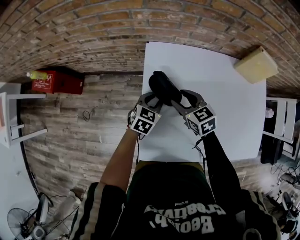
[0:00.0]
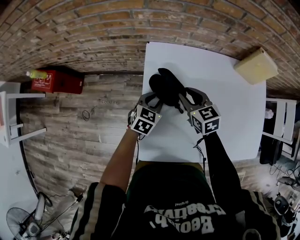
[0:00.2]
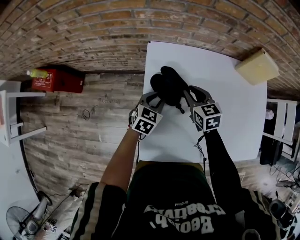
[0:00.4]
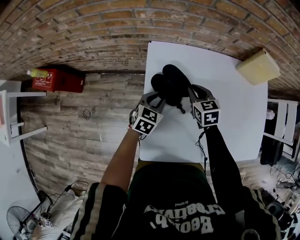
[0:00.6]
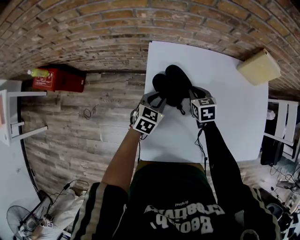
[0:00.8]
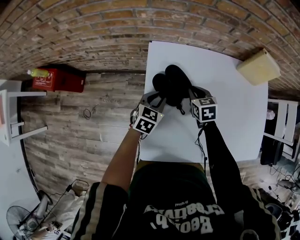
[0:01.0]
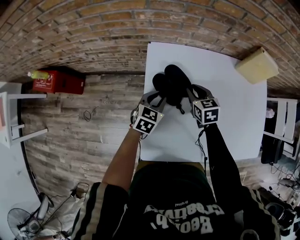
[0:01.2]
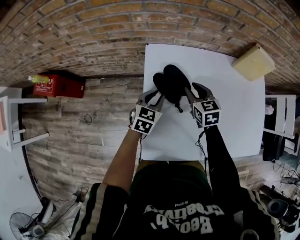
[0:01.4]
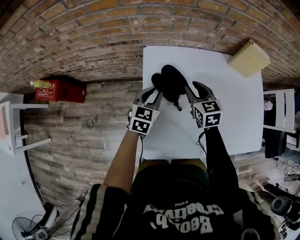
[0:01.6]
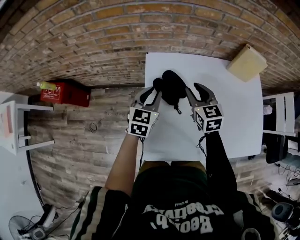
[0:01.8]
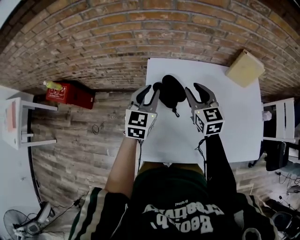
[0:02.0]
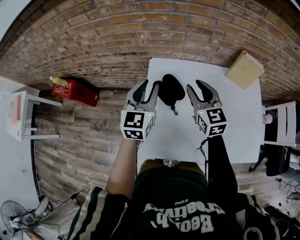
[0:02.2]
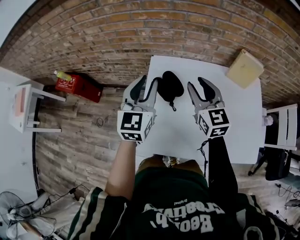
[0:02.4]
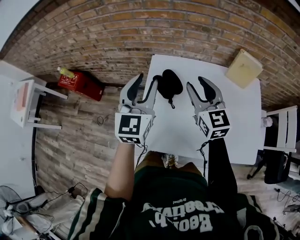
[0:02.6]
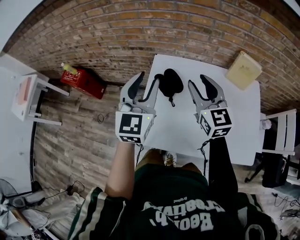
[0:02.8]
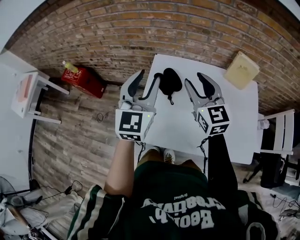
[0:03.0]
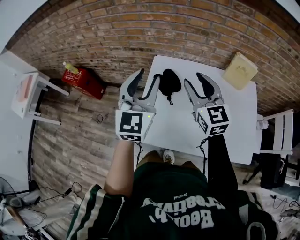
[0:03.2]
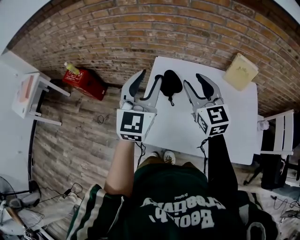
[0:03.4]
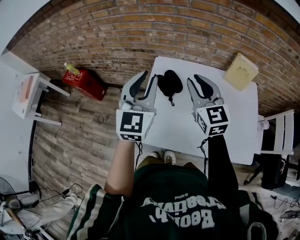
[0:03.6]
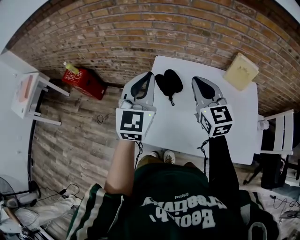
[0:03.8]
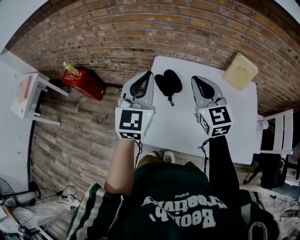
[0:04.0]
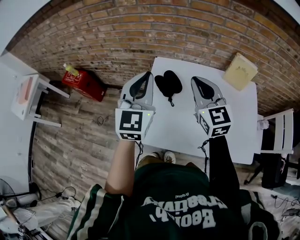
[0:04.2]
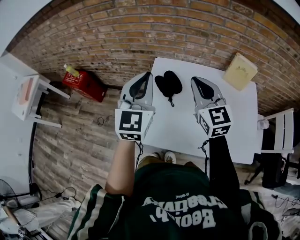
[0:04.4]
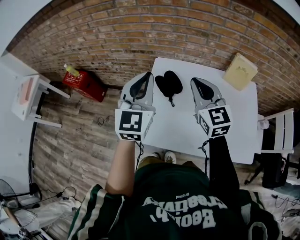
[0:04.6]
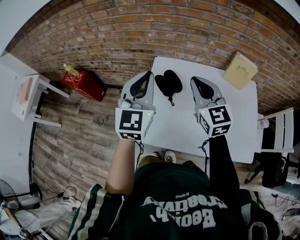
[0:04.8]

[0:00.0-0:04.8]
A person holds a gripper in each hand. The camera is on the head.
0:00.0 to 0:01.6: The right gripper heads to the right, covering some 5 cm, and changes its angle by approximately 20 degrees, while the left gripper travels upward by about 5 cm.
0:01.6 to 0:03.2: Both grippers move upward and backward, some 30 cm. The right gripper swivels approximately 30 degrees. Meanwhile the left gripper tilts its fingers some 30 degrees upward.
0:03.2 to 0:04.8: The right gripper closes up; the left gripper closes.

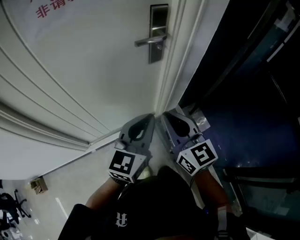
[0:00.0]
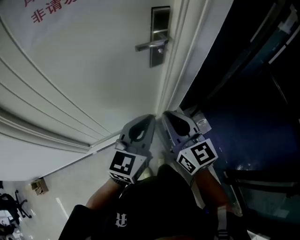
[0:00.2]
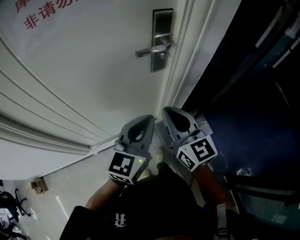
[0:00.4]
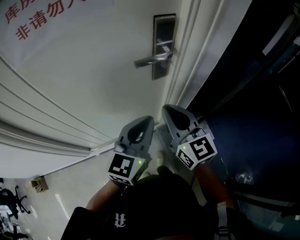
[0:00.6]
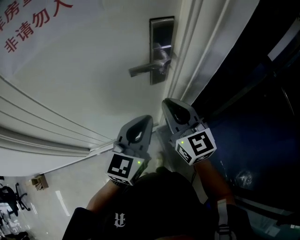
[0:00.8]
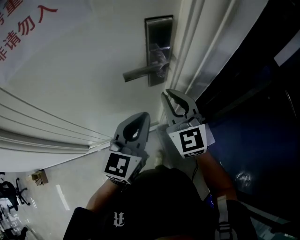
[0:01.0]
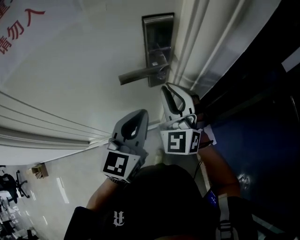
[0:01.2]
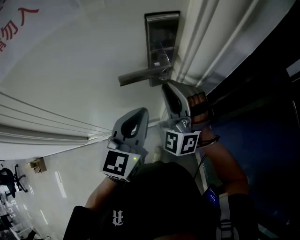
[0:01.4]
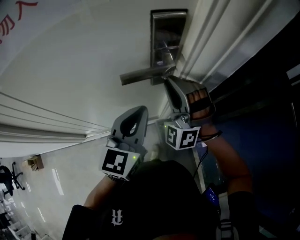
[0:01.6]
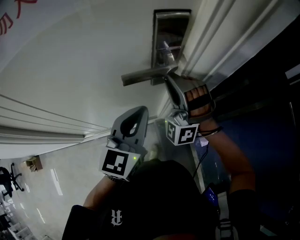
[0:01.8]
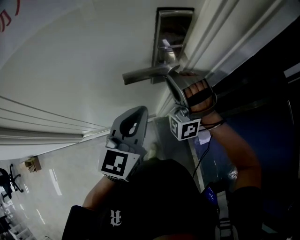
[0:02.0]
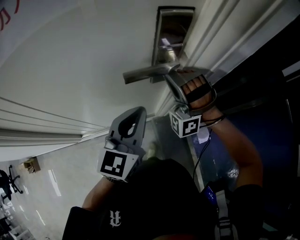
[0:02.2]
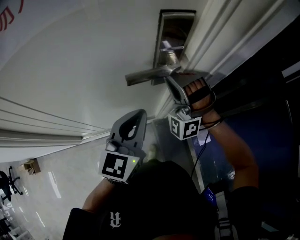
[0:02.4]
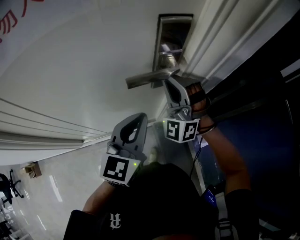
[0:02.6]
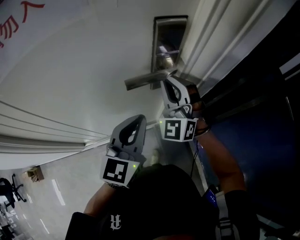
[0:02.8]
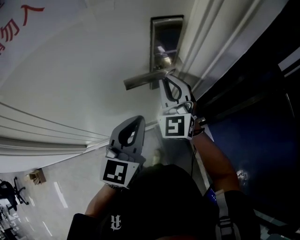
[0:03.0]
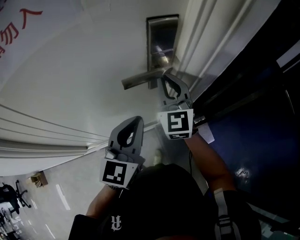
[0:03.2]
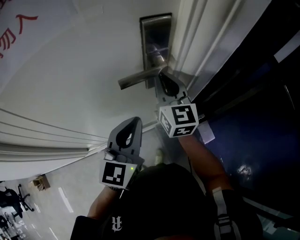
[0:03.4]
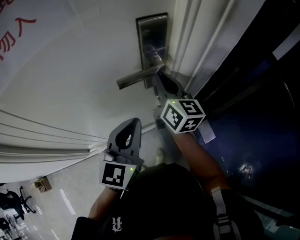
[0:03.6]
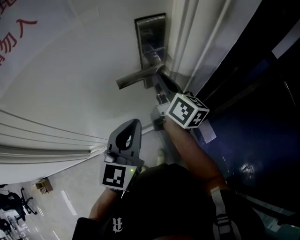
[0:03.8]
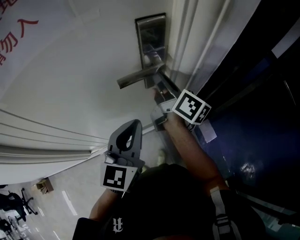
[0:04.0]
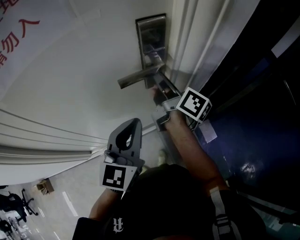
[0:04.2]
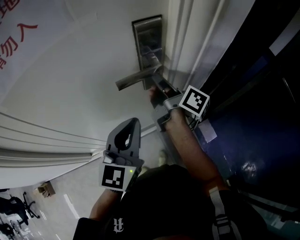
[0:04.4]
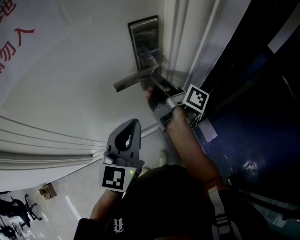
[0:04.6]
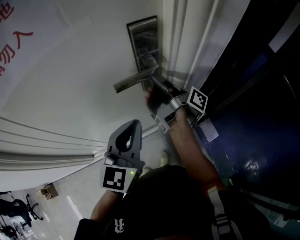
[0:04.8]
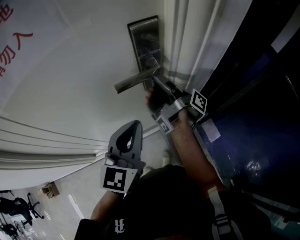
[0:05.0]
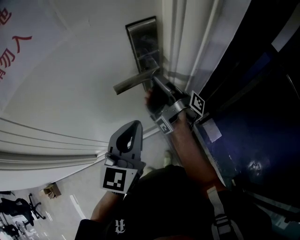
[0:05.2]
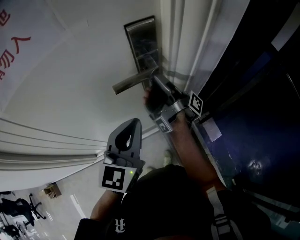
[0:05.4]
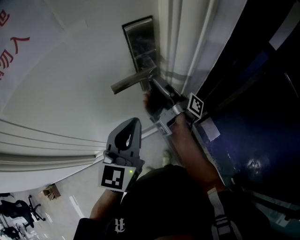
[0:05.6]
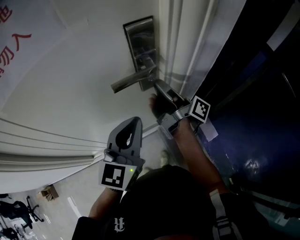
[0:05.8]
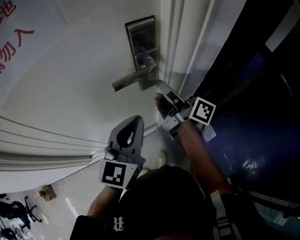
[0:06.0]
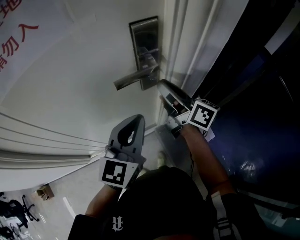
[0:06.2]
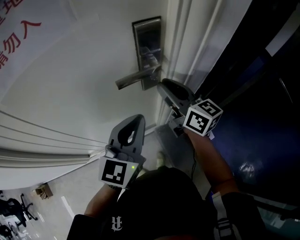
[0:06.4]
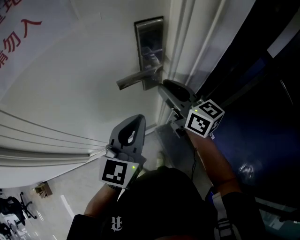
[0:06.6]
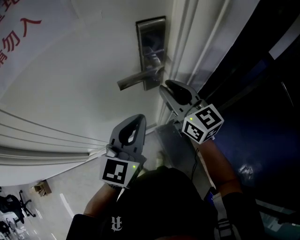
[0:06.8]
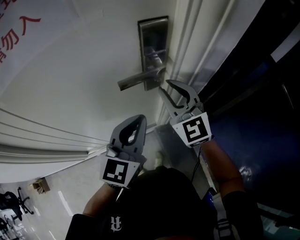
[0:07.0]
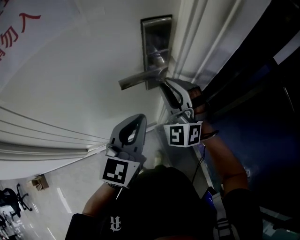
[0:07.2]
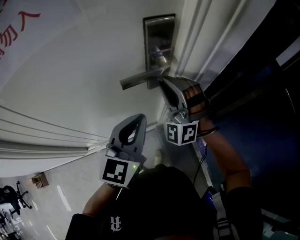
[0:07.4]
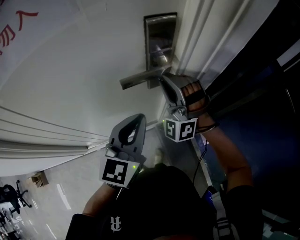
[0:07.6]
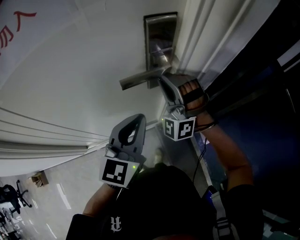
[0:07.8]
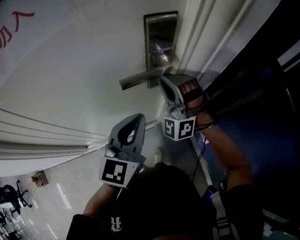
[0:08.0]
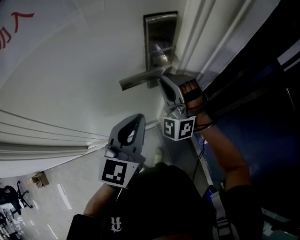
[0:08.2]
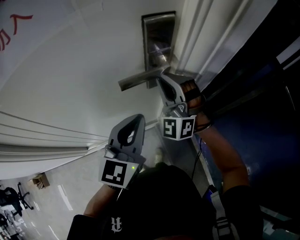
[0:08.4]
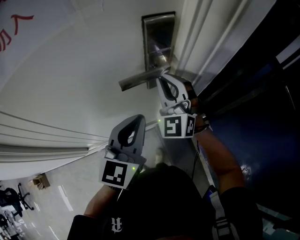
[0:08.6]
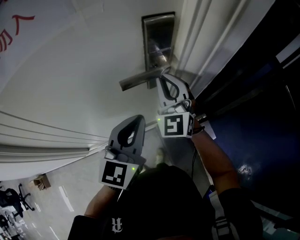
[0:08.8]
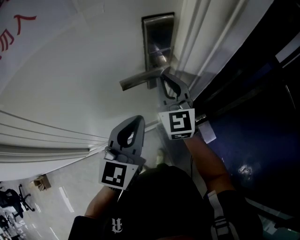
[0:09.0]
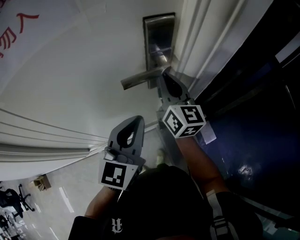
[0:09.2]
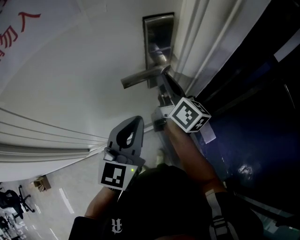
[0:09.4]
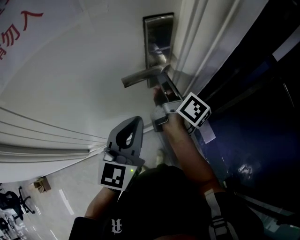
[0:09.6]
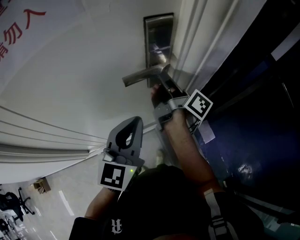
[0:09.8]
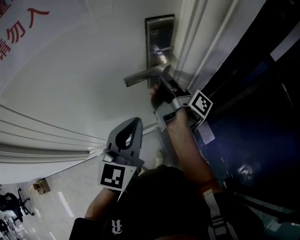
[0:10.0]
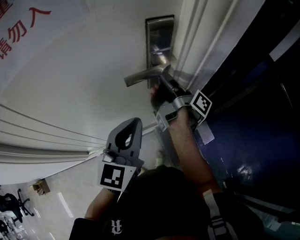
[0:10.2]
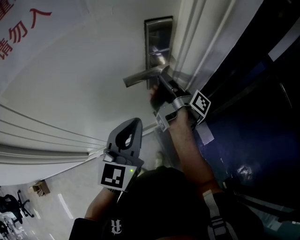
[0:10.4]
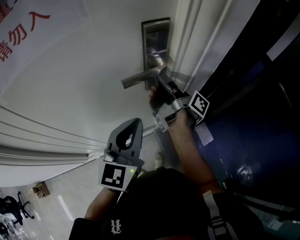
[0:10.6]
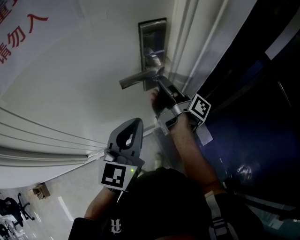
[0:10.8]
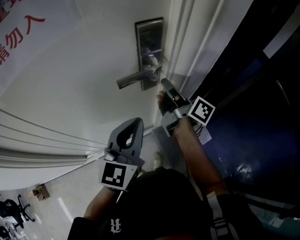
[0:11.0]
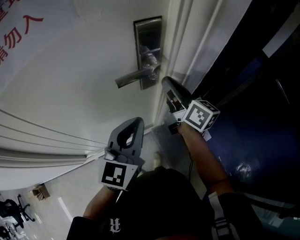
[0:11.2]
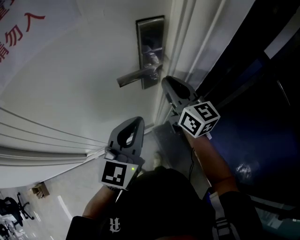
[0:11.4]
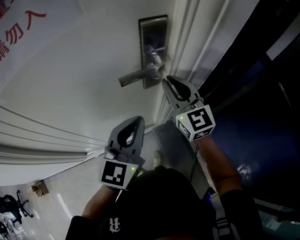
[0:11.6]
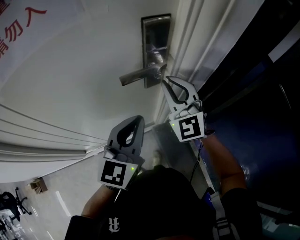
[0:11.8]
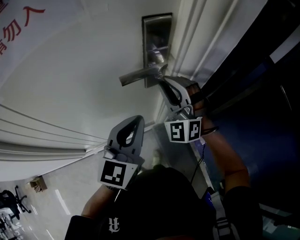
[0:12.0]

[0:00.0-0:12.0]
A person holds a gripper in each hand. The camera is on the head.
0:00.0 to 0:01.6: The two grippers go about 25 cm forward. The right gripper rolls counterclockwise, seen from behind, by some 80 degrees.
0:01.6 to 0:03.0: The right gripper rotates around the line of its fingers by about 40 degrees, clockwise from behind.
0:03.0 to 0:04.4: The right gripper twists approximately 110 degrees clockwise, seen from behind.
0:06.0 to 0:07.6: The right gripper rolls counterclockwise, seen from behind, by some 140 degrees.
0:07.6 to 0:09.0: The right gripper rolls clockwise, seen from behind, by approximately 70 degrees.
0:09.0 to 0:10.4: The right gripper twists some 110 degrees clockwise, seen from behind.
0:10.4 to 0:12.0: The right gripper changes place by approximately 5 cm, and rotates around the line of its fingers by some 160 degrees, counterclockwise from behind.

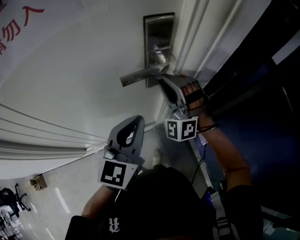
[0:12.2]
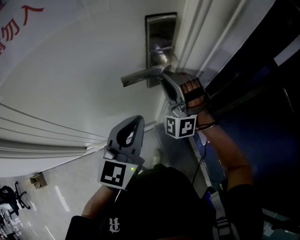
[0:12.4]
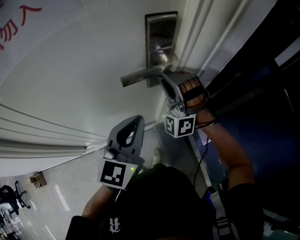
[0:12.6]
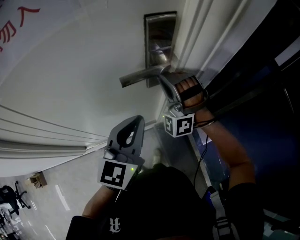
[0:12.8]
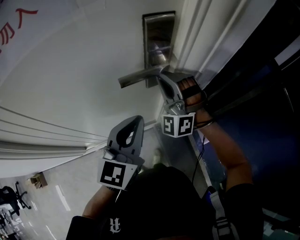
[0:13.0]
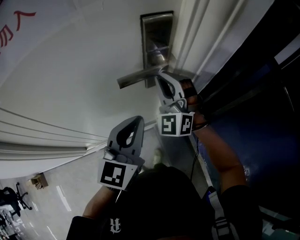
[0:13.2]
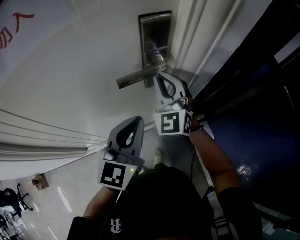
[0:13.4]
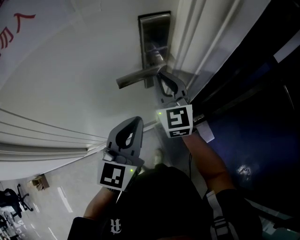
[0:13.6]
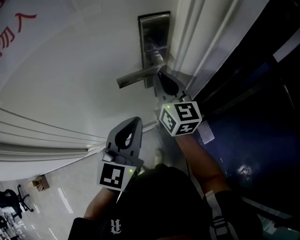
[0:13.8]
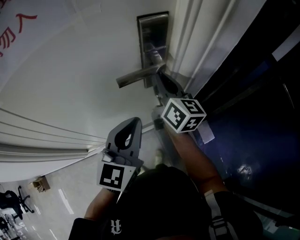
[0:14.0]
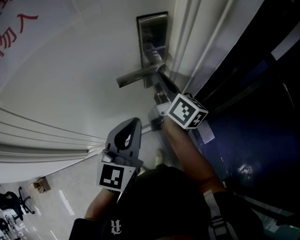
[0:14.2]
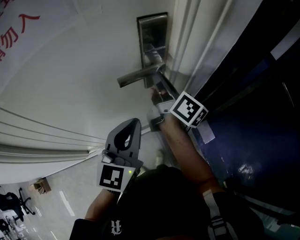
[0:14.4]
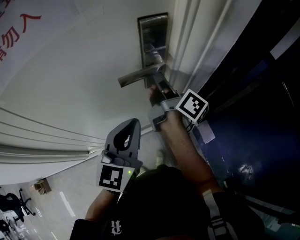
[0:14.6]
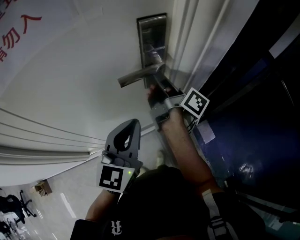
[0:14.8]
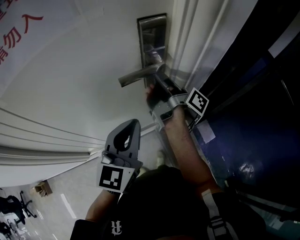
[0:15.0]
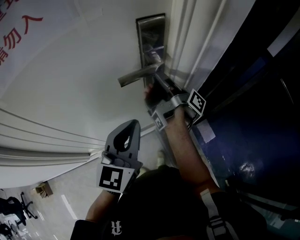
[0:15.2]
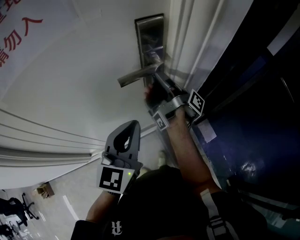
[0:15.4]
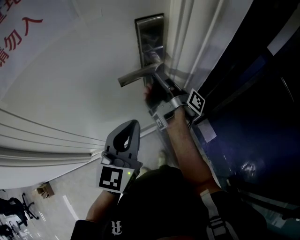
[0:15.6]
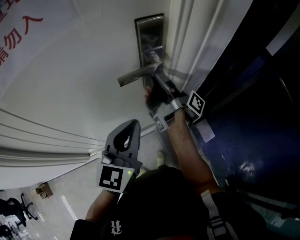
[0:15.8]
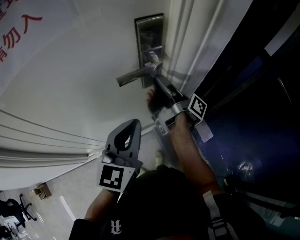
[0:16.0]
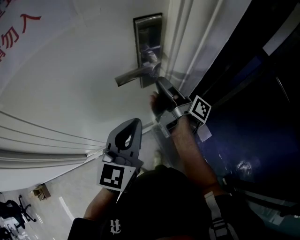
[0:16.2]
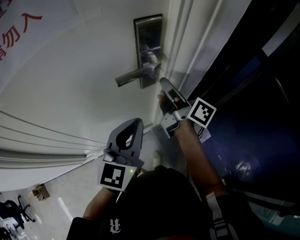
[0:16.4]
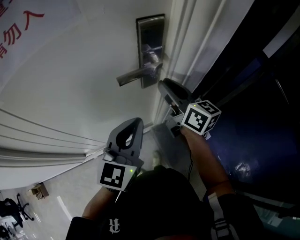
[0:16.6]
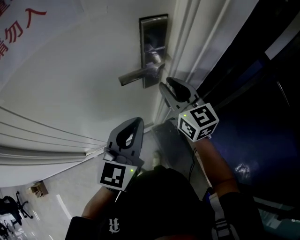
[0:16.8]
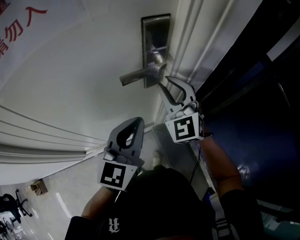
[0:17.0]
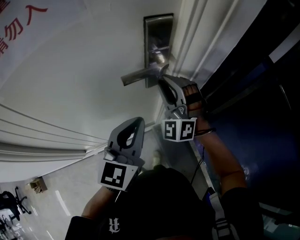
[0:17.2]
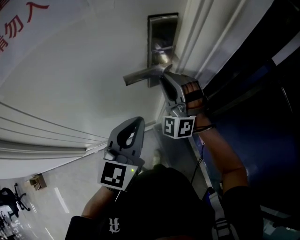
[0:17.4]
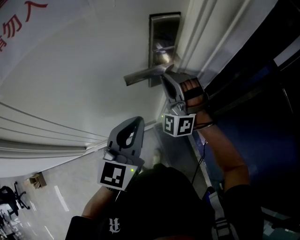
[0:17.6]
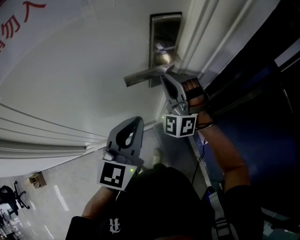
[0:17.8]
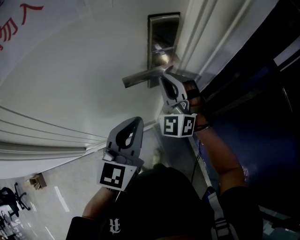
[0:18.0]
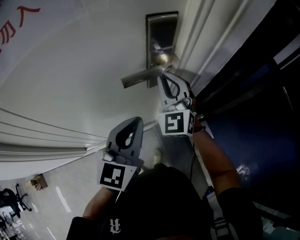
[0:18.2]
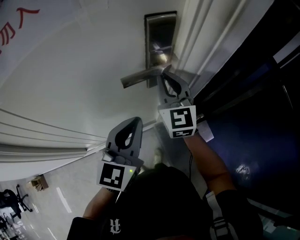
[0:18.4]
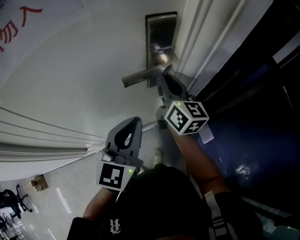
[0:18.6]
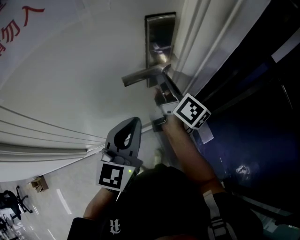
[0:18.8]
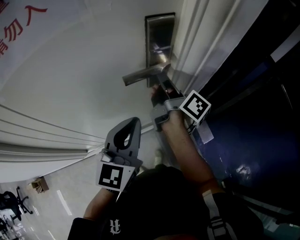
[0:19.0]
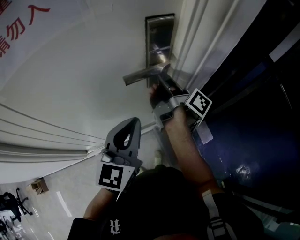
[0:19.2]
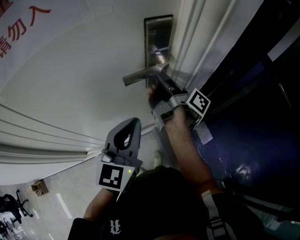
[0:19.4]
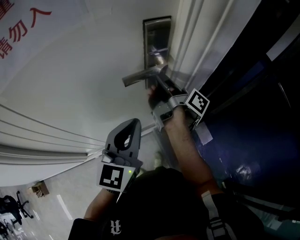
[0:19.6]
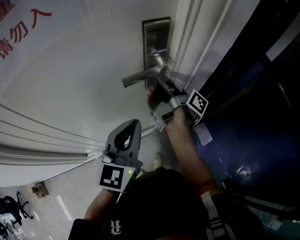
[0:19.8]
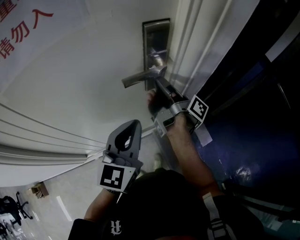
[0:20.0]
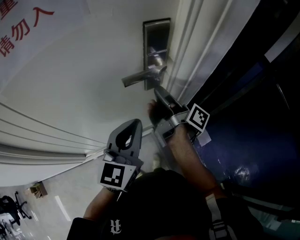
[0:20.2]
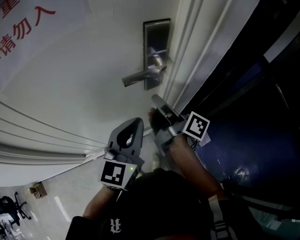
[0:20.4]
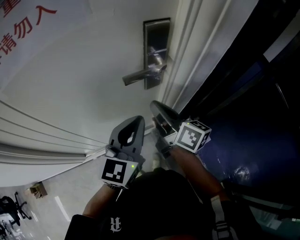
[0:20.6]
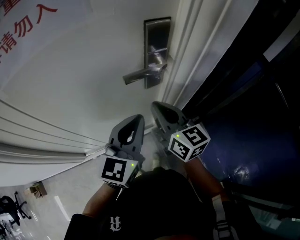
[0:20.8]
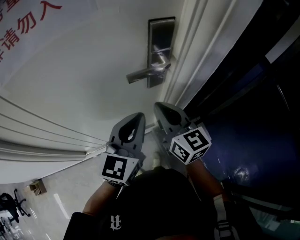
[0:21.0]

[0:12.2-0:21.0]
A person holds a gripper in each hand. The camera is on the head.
0:12.2 to 0:13.6: The right gripper rotates around the line of its fingers by some 60 degrees, clockwise from behind.
0:13.6 to 0:15.2: The right gripper rotates around the line of its fingers by some 120 degrees, clockwise from behind.
0:15.2 to 0:16.6: The right gripper ends up approximately 5 cm from where it was, and twists some 70 degrees counterclockwise, seen from behind.
0:16.6 to 0:18.0: The right gripper shifts by roughly 5 cm, and twists some 90 degrees counterclockwise, seen from behind.
0:18.0 to 0:19.6: The right gripper rolls clockwise, seen from behind, by roughly 150 degrees.
0:19.6 to 0:21.0: The right gripper moves backward, some 10 cm, and rolls counterclockwise, seen from behind, by some 80 degrees.
